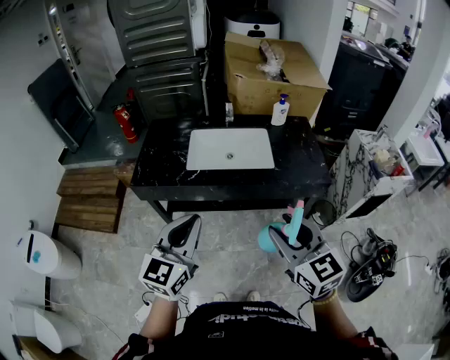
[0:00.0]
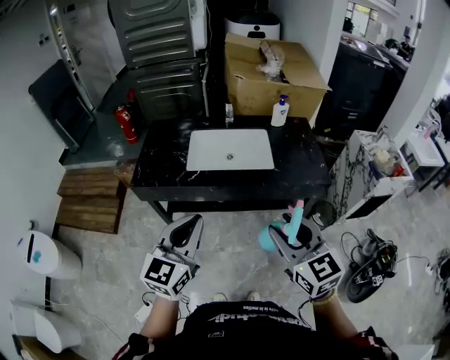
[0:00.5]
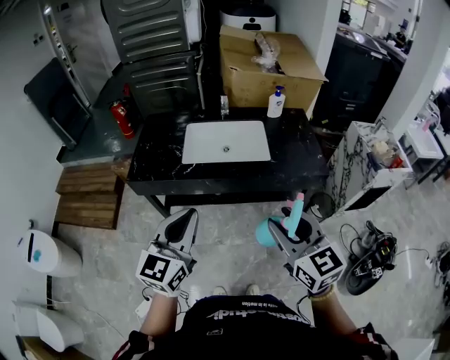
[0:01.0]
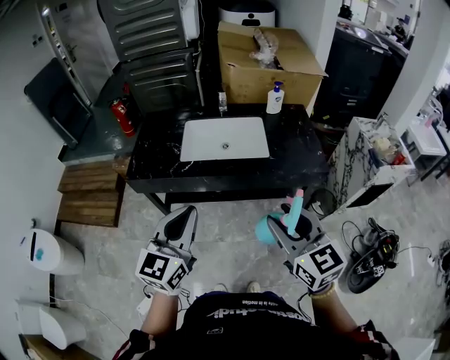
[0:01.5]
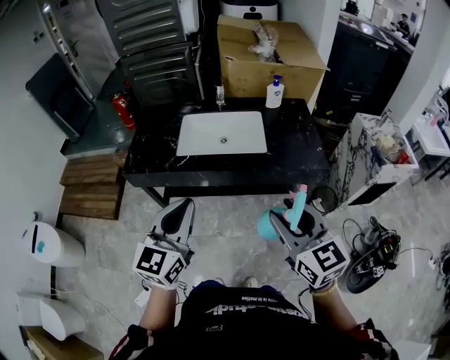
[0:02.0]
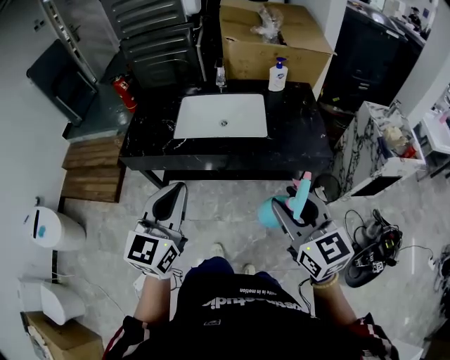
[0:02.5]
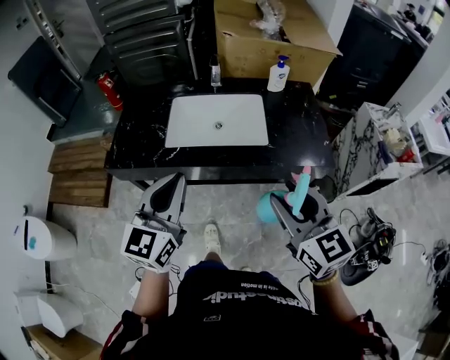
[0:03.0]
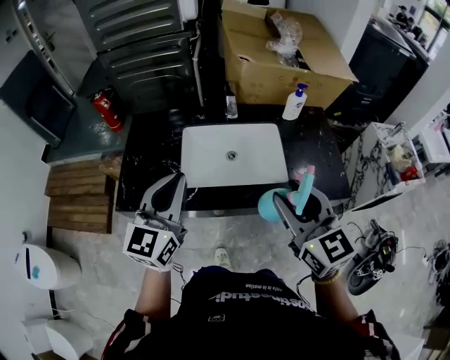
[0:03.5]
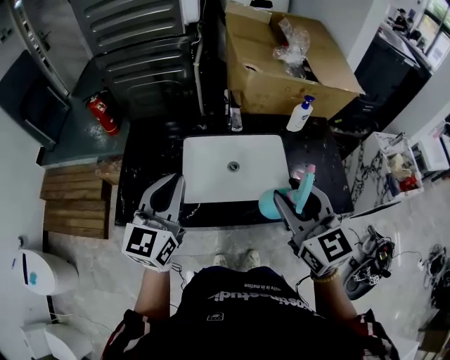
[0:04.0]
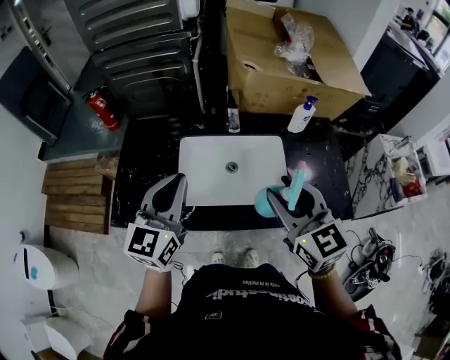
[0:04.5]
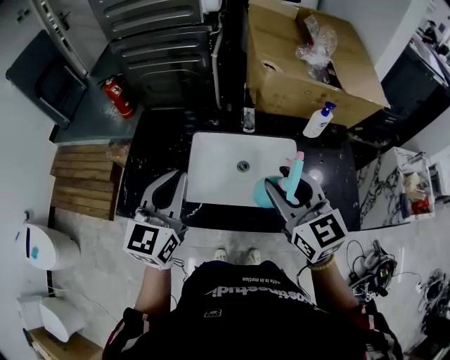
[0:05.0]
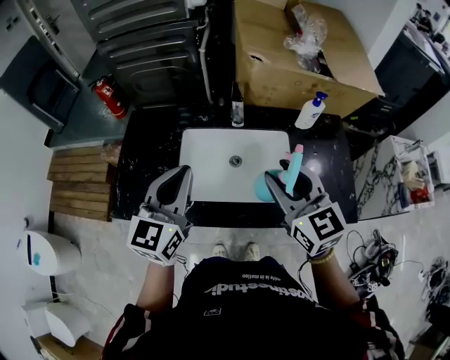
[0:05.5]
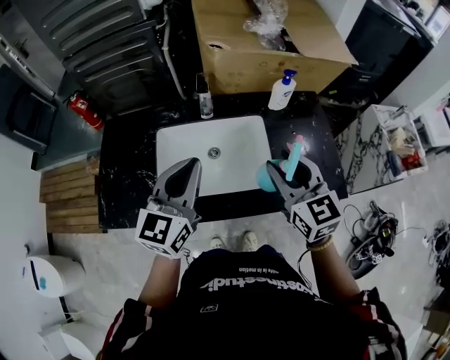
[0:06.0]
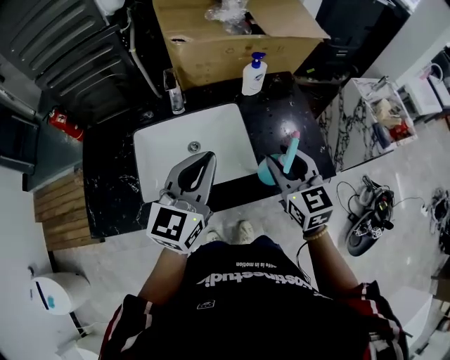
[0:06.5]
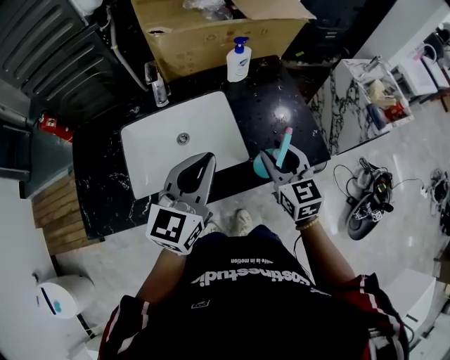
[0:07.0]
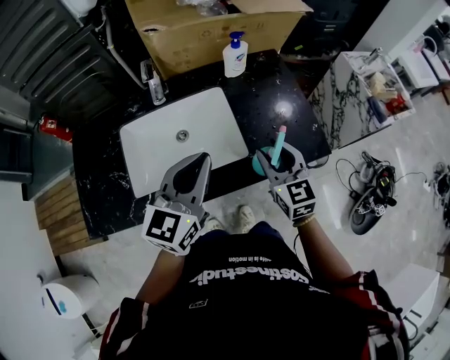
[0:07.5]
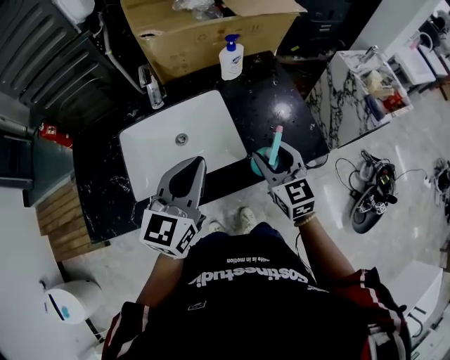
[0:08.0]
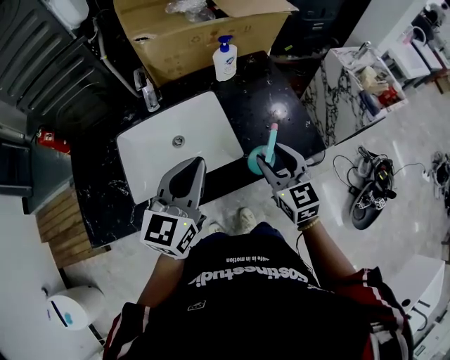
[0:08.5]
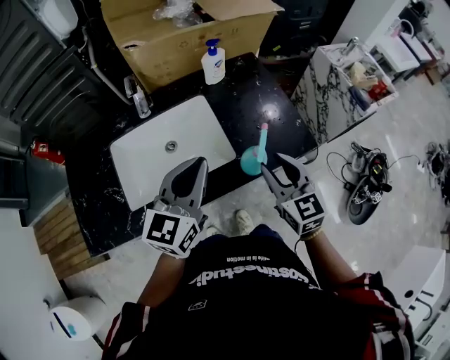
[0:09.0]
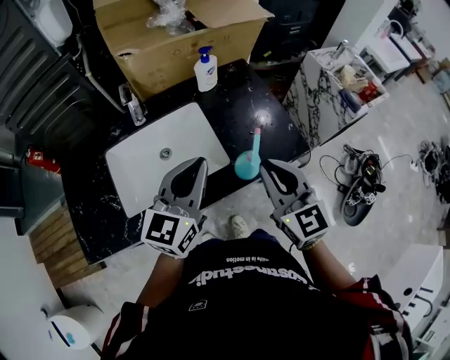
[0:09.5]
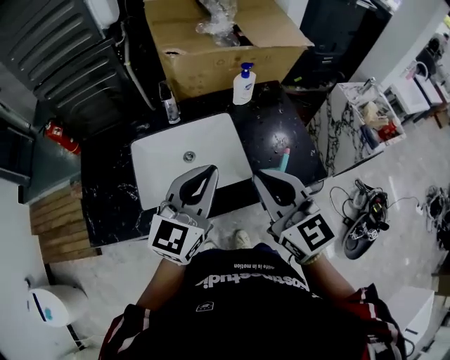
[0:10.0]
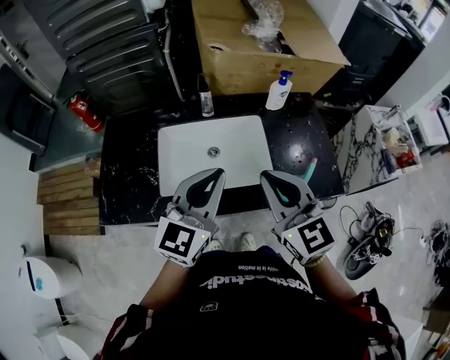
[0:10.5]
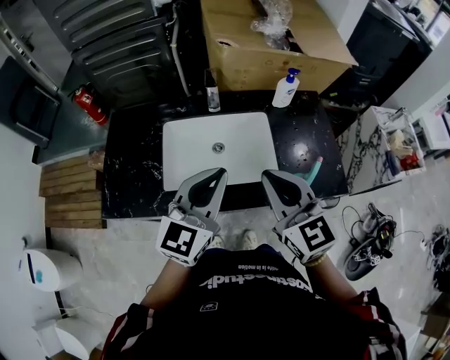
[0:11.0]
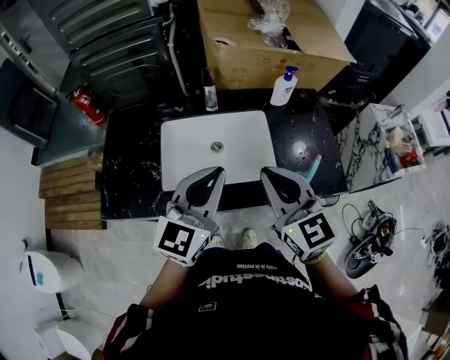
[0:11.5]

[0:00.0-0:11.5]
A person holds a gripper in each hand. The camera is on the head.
0:00.0 to 0:02.0: Both grippers travel together to the right, roughly 5 cm.
0:02.0 to 0:04.0: The grippers both shift forward by about 35 cm.
0:04.0 to 0:06.0: The right gripper moves to the right, forward and downward, approximately 15 cm. Meanwhile the left gripper is displaced to the right by about 15 cm.
0:06.0 to 0:07.5: The left gripper shifts approximately 15 cm to the right. Meanwhile the right gripper heads downward and to the right, covering approximately 15 cm.
0:07.5 to 0:09.5: The right gripper goes approximately 10 cm upward and backward, and closes up.
0:09.5 to 0:11.5: The two grippers go about 15 cm to the left. The right gripper turns by about 20 degrees.

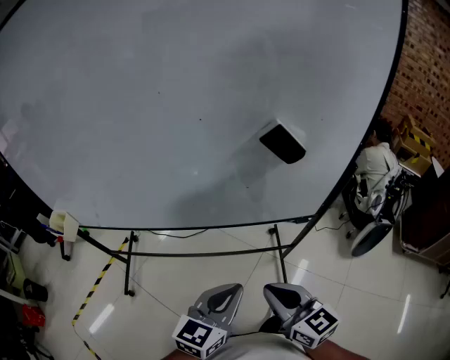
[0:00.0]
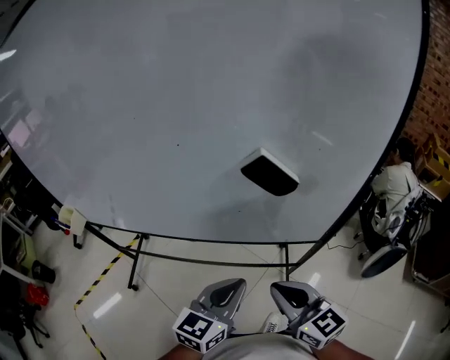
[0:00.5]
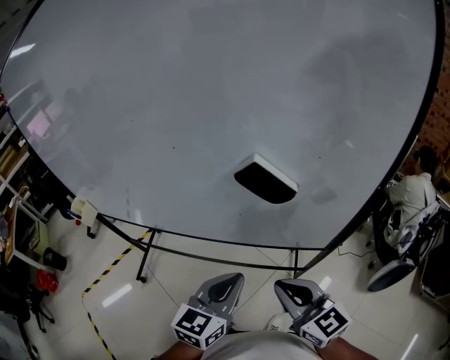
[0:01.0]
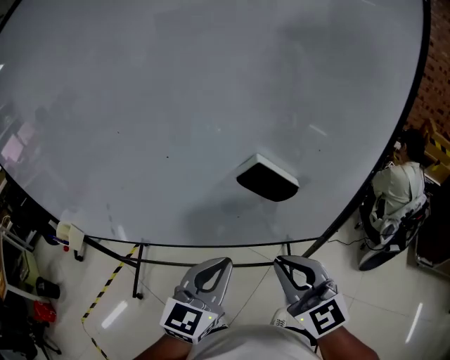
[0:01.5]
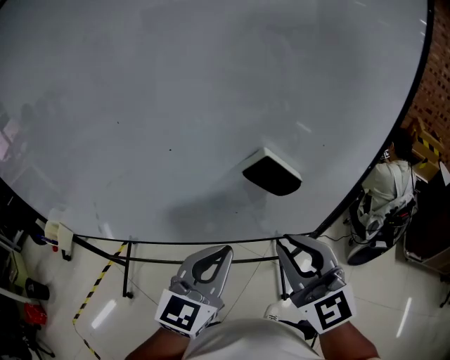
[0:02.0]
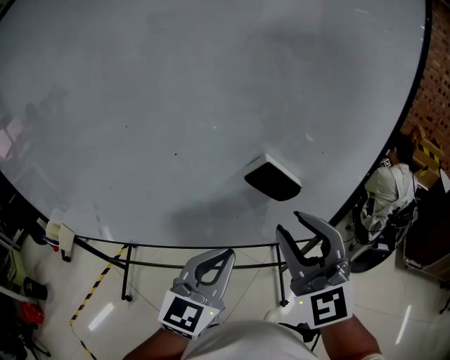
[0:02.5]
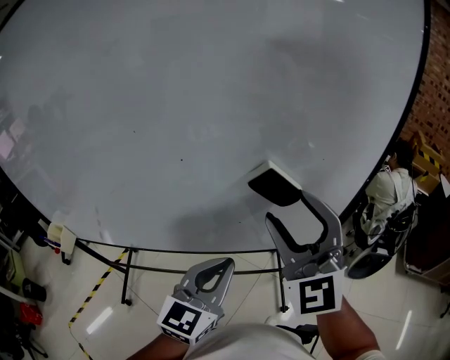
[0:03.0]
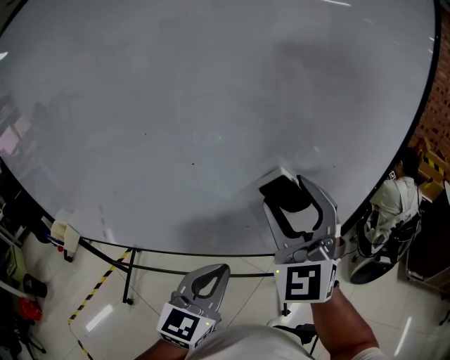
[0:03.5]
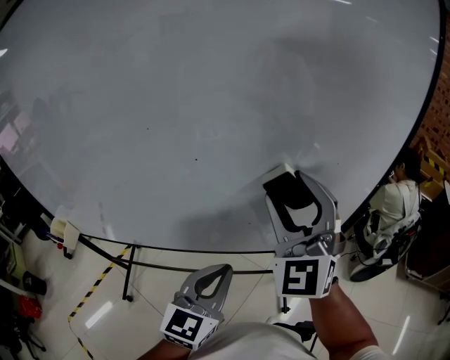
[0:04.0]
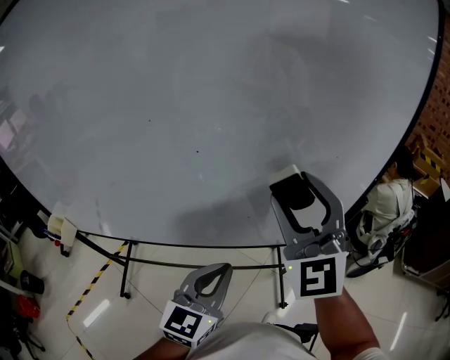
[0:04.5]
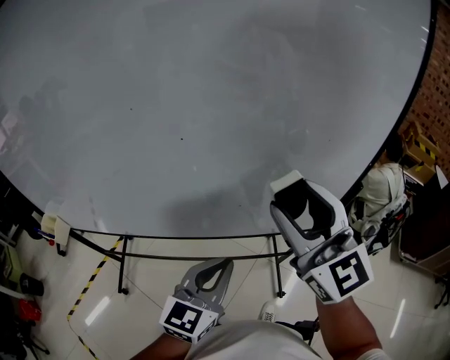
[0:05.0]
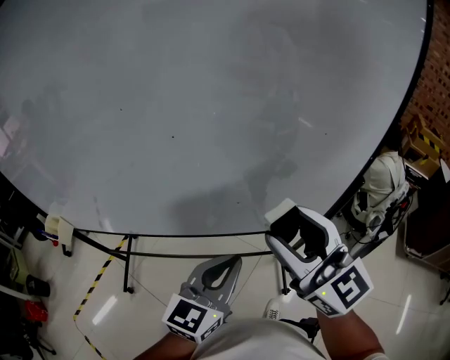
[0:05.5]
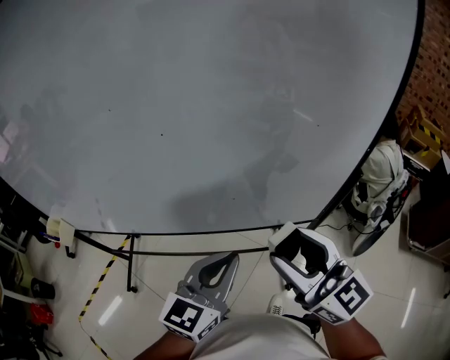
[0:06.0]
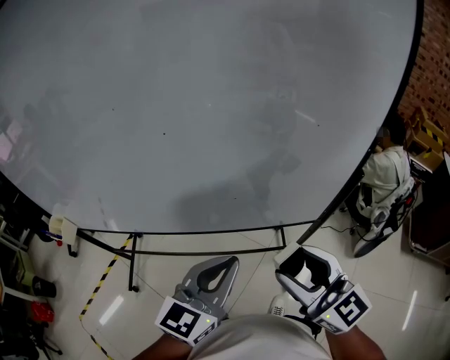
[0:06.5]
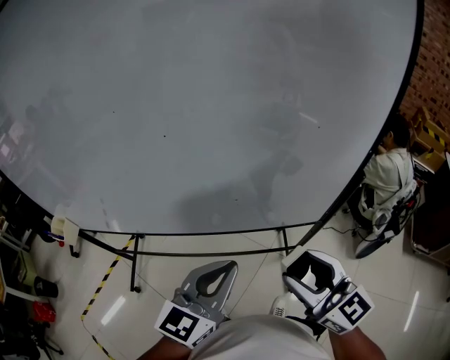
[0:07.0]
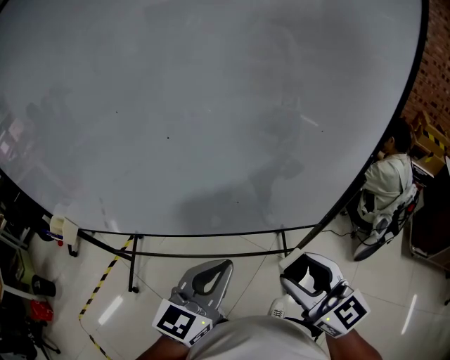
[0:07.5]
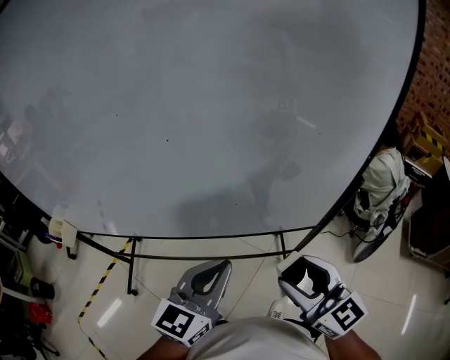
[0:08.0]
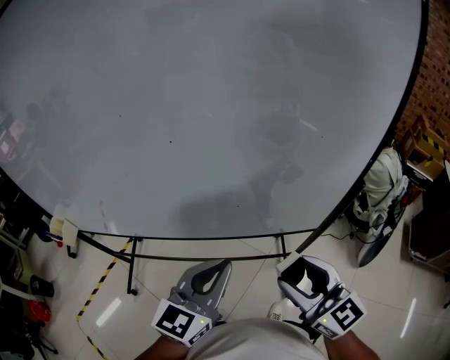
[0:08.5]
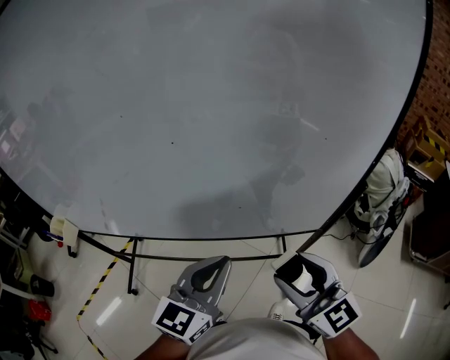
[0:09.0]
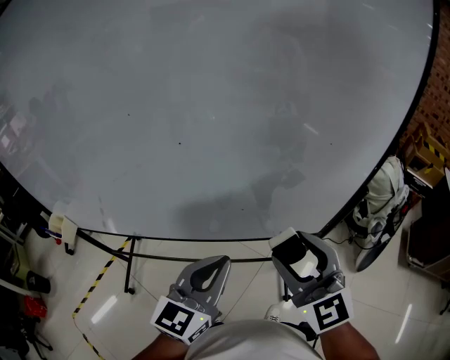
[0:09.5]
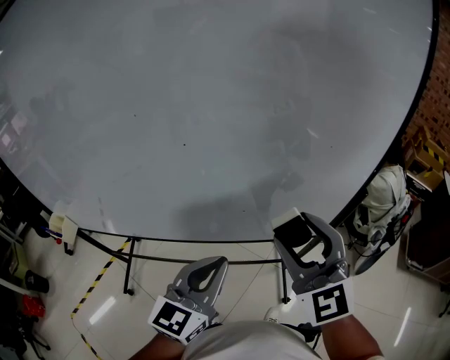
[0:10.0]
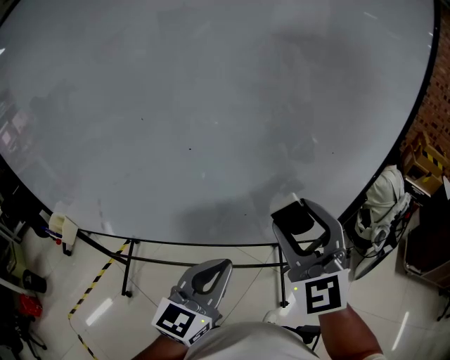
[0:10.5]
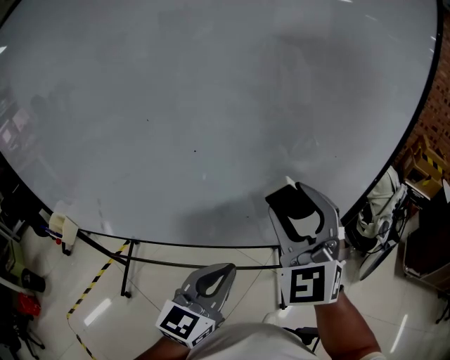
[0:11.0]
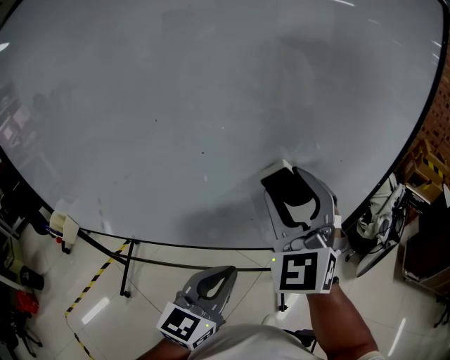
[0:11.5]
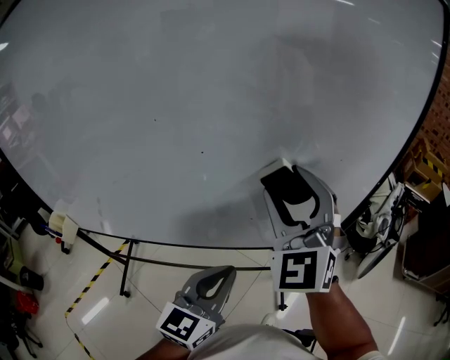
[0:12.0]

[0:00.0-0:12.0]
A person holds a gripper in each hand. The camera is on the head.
0:00.0 to 0:02.0: The right gripper goes about 20 cm upward and forward, and swivels approximately 30 degrees; the left gripper heads forward and upward, covering some 20 cm.
0:02.0 to 0:04.0: The right gripper travels forward and upward by about 10 cm, swivels roughly 30 degrees, and opens up.
0:04.0 to 0:06.0: The right gripper shifts approximately 15 cm backward, downward and to the right, and twists some 50 degrees clockwise, seen from behind, while the left gripper changes place by some 5 cm.
0:06.0 to 0:08.0: The right gripper heads downward, covering about 5 cm.
0:08.0 to 0:10.0: The right gripper heads upward and forward, covering roughly 10 cm, and swivels roughly 30 degrees.
0:10.0 to 0:12.0: The right gripper shifts approximately 10 cm forward, upward and to the left, and turns by some 20 degrees.

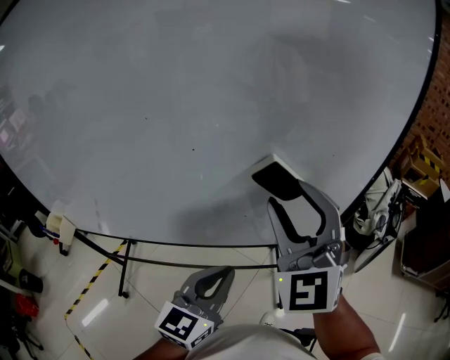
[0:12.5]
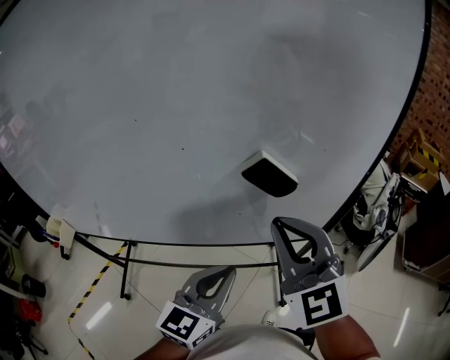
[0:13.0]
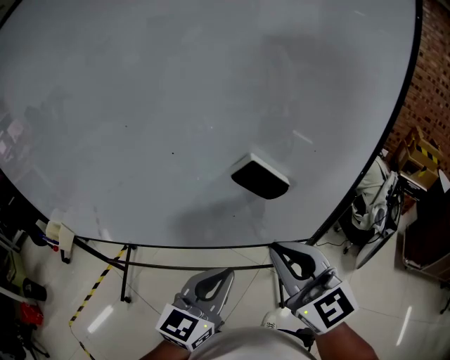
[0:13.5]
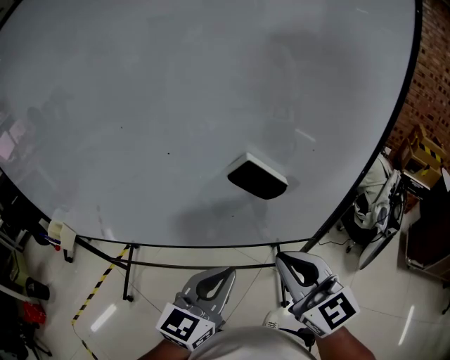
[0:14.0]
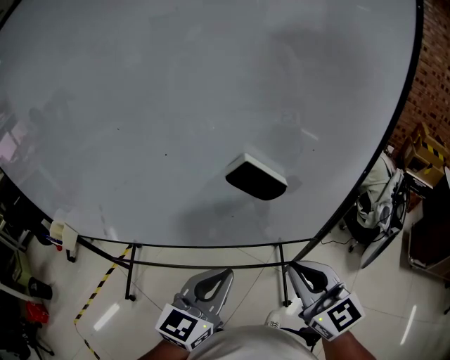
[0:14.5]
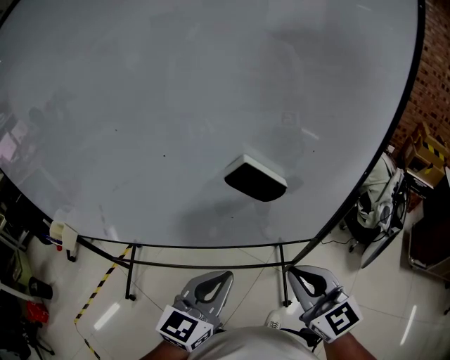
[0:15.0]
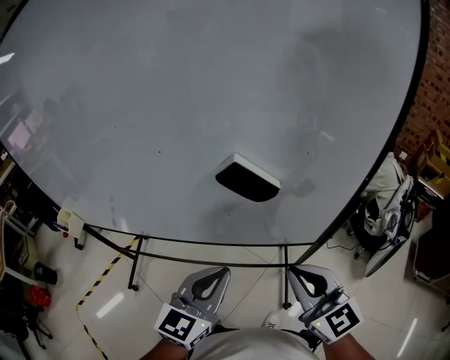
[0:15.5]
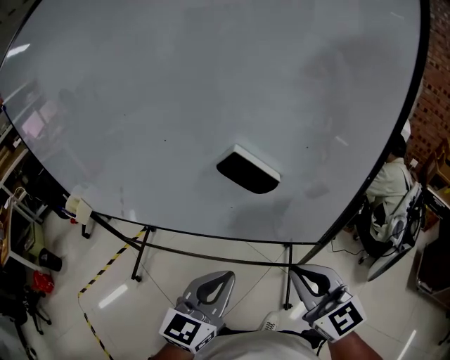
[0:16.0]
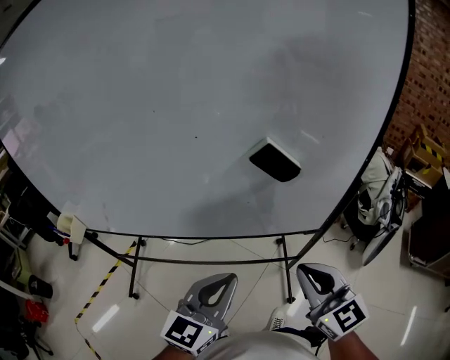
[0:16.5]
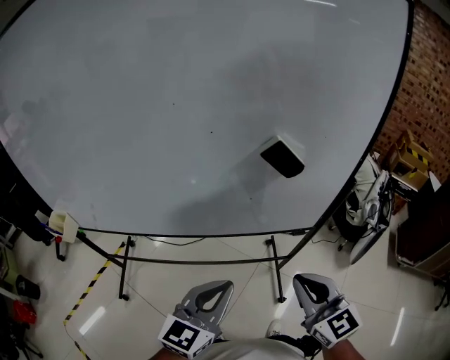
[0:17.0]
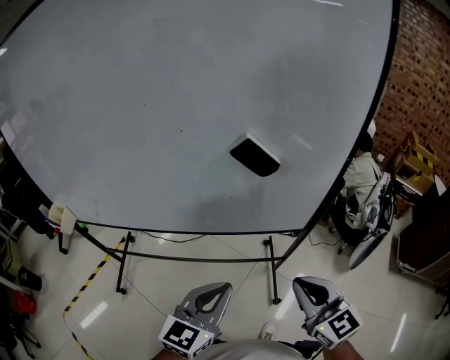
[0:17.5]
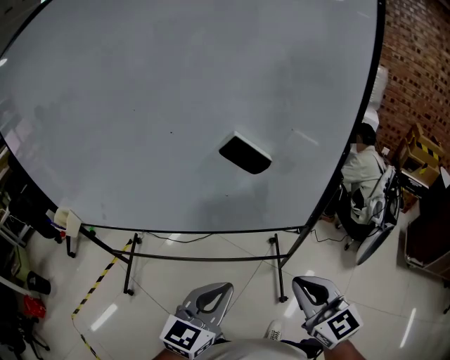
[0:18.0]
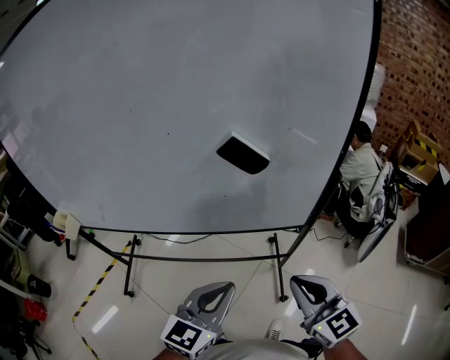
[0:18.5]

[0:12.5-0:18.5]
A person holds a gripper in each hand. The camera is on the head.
0:12.5 to 0:14.5: The right gripper goes about 20 cm downward, to the right and backward, twists some 40 degrees clockwise, seen from behind, and closes.
0:14.5 to 0:16.5: Both grippers move backward, some 5 cm.
0:16.5 to 0:18.5: Both grippers travel together to the right, about 5 cm.
